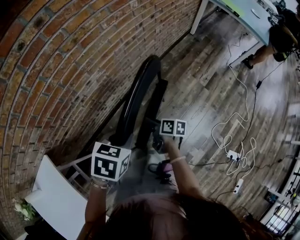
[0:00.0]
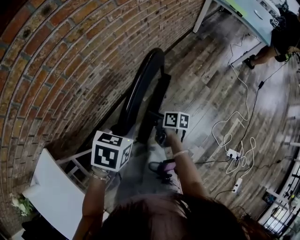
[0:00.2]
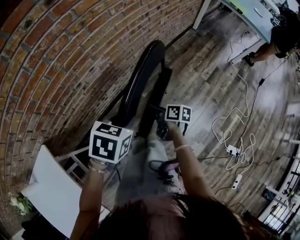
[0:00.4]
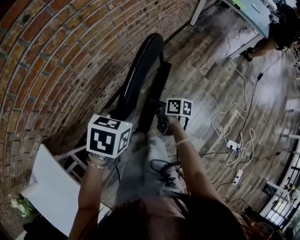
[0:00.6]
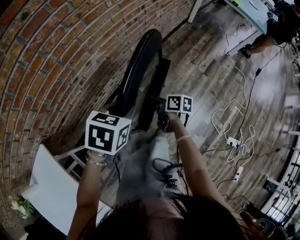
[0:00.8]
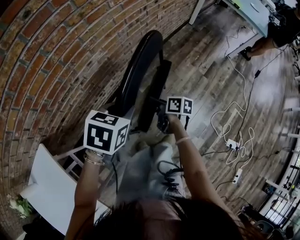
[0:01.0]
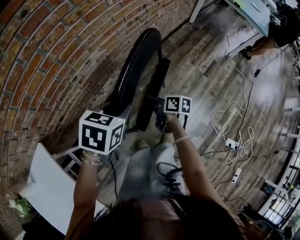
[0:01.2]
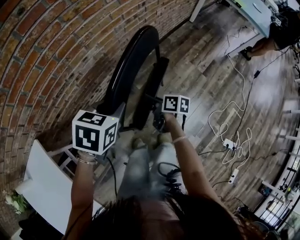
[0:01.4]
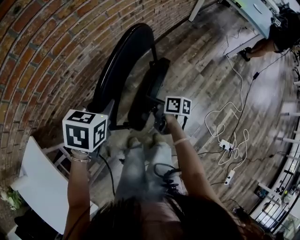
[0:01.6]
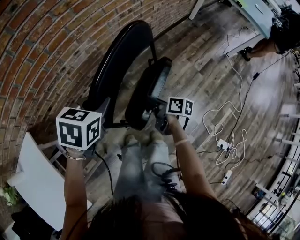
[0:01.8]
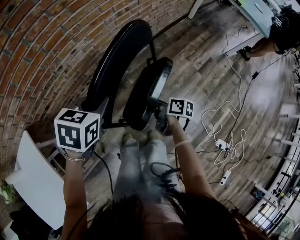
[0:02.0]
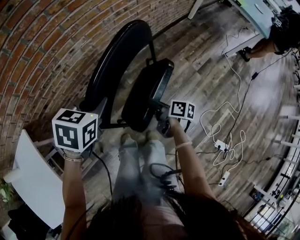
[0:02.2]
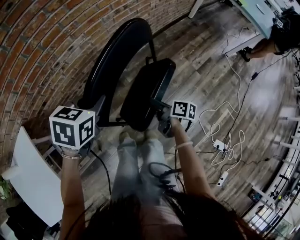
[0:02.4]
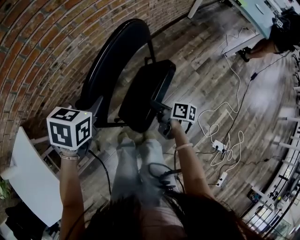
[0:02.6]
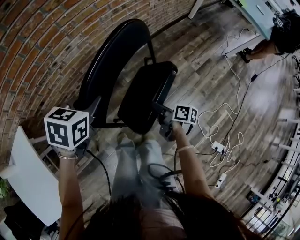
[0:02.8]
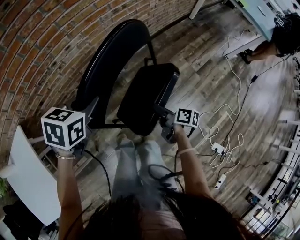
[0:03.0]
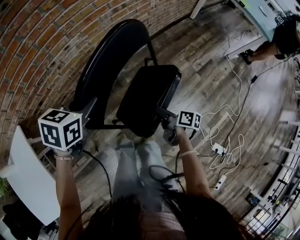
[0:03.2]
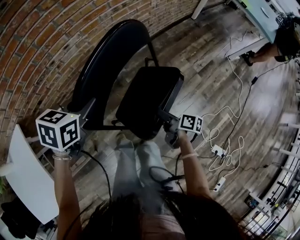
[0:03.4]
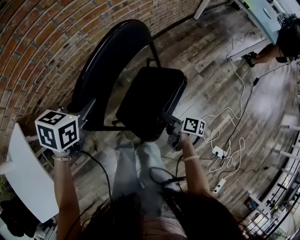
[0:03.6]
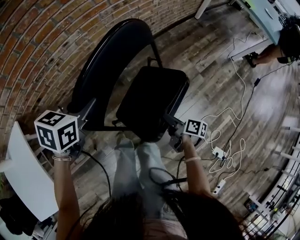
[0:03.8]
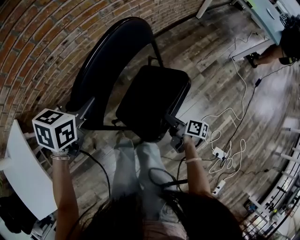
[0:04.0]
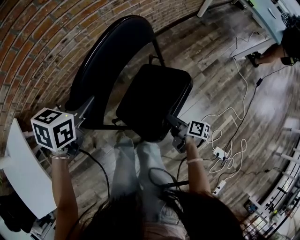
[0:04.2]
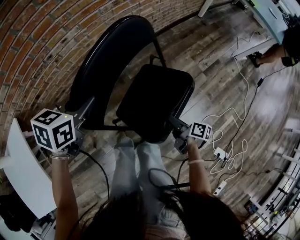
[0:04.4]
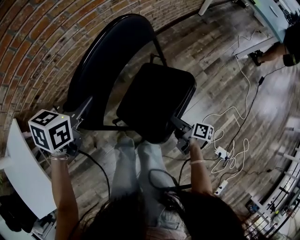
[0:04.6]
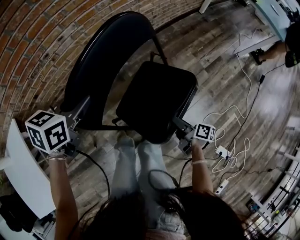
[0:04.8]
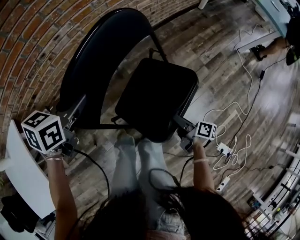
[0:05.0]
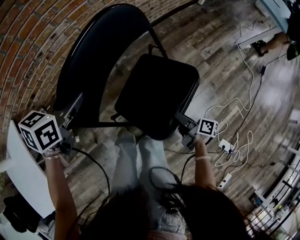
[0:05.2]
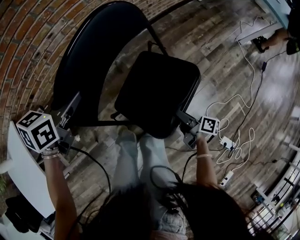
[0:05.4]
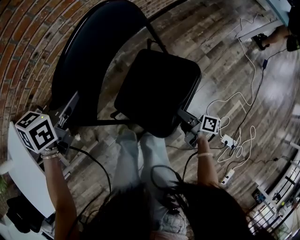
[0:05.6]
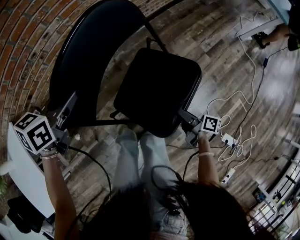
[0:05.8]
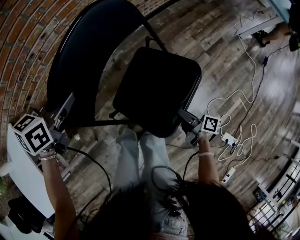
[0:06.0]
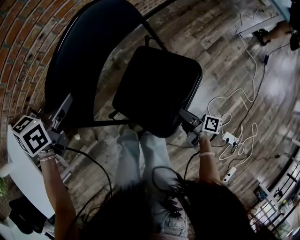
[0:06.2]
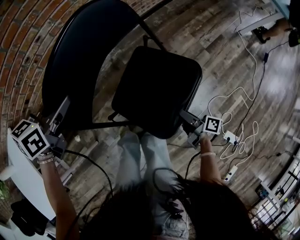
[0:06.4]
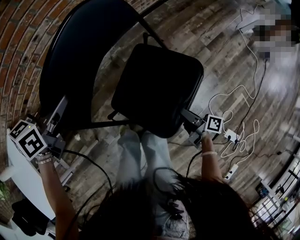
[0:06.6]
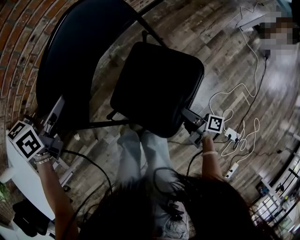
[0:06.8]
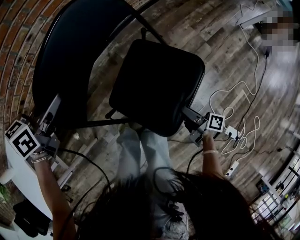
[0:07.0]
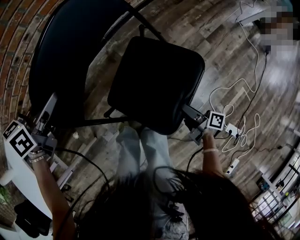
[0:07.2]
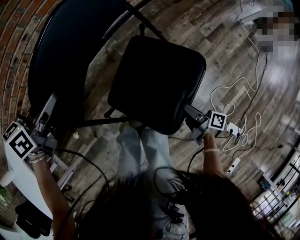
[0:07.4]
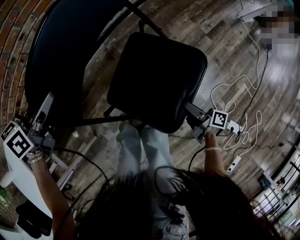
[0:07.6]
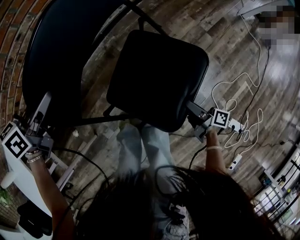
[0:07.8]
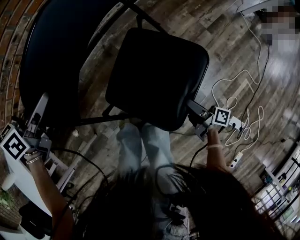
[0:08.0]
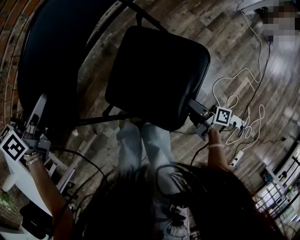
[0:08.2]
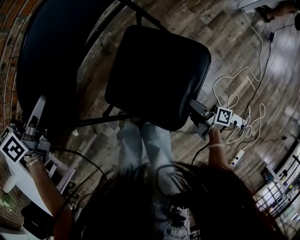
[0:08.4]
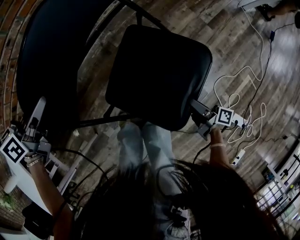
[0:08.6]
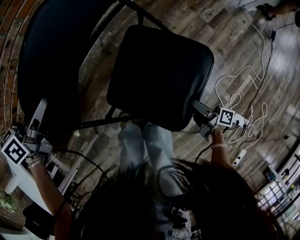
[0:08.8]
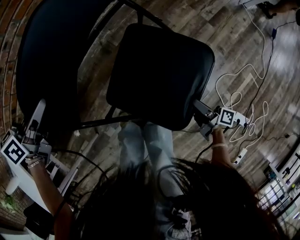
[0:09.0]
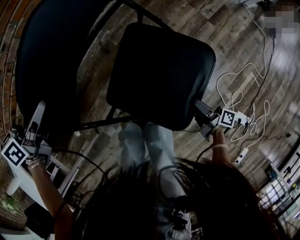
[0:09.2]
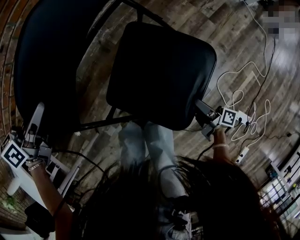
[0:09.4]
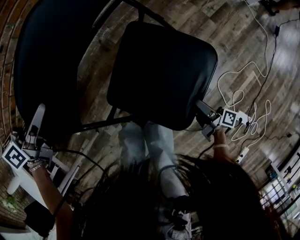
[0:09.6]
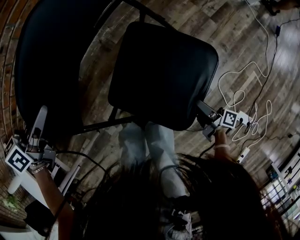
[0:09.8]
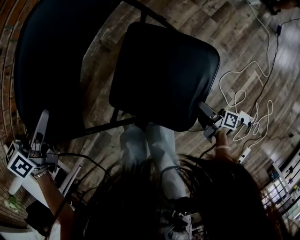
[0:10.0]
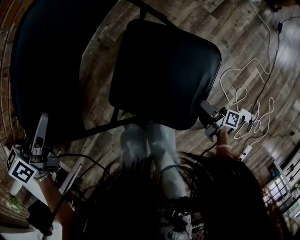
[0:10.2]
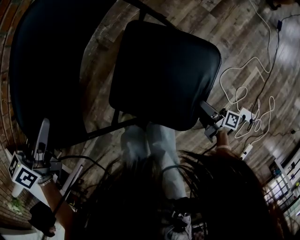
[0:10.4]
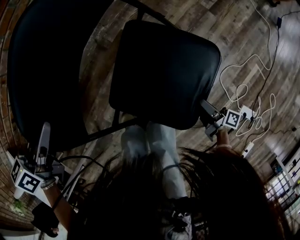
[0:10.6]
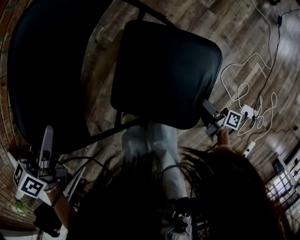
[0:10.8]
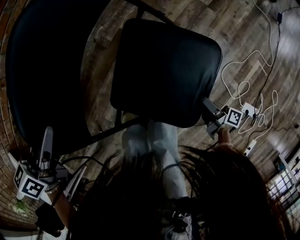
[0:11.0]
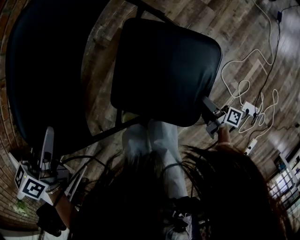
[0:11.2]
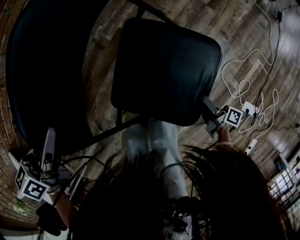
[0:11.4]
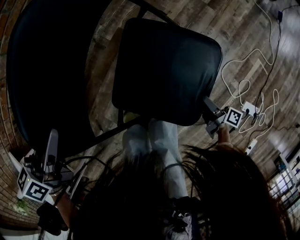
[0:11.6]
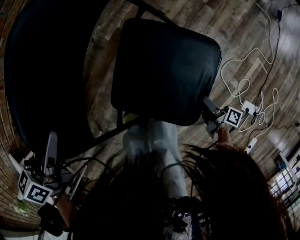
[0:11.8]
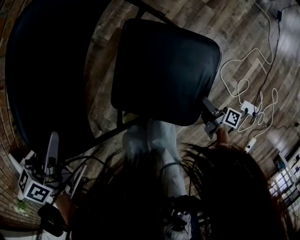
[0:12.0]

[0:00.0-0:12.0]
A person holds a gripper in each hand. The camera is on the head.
0:00.0 to 0:01.6: There are only small adjustments of the grippers.
0:01.6 to 0:03.0: The right gripper shifts approximately 15 cm to the right and backward.
0:03.0 to 0:04.4: The right gripper moves to the right, downward and backward, roughly 10 cm.
0:04.4 to 0:06.0: The right gripper is displaced downward by some 5 cm.
0:06.0 to 0:07.6: The right gripper changes place by approximately 5 cm. The left gripper shifts by roughly 5 cm.
0:07.6 to 0:09.0: The right gripper ends up approximately 5 cm from where it was.
0:09.0 to 0:10.4: The right gripper ends up some 5 cm from where it was.
0:10.4 to 0:12.0: The grippers move only a little.

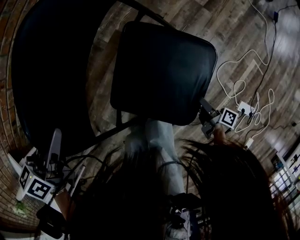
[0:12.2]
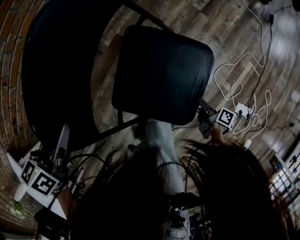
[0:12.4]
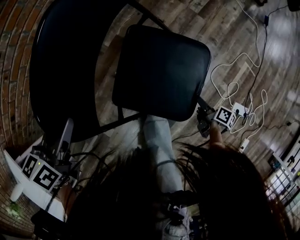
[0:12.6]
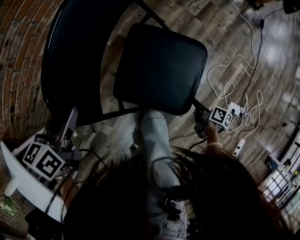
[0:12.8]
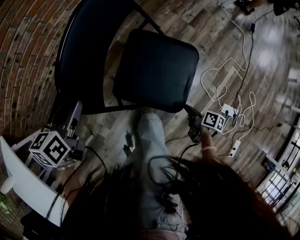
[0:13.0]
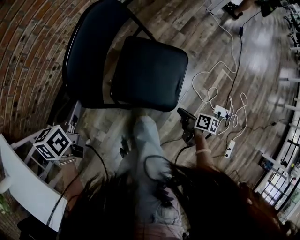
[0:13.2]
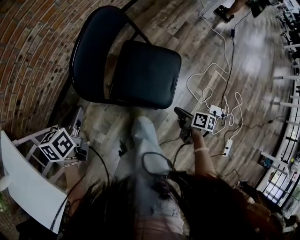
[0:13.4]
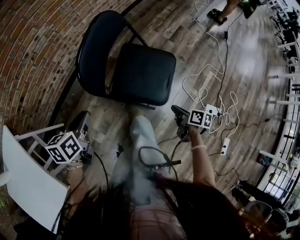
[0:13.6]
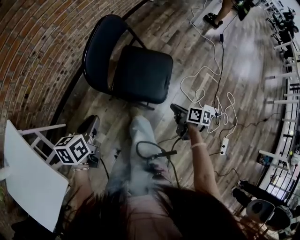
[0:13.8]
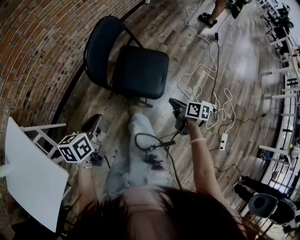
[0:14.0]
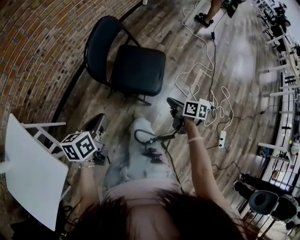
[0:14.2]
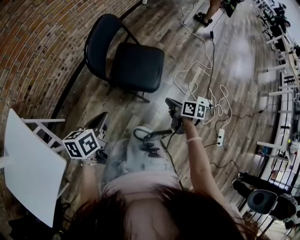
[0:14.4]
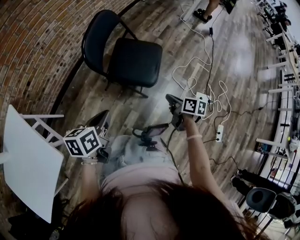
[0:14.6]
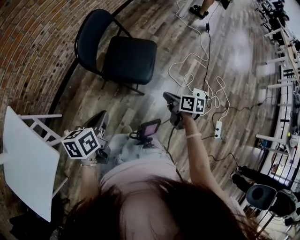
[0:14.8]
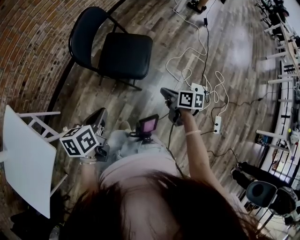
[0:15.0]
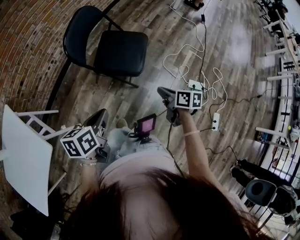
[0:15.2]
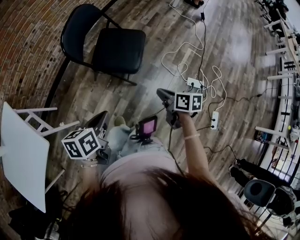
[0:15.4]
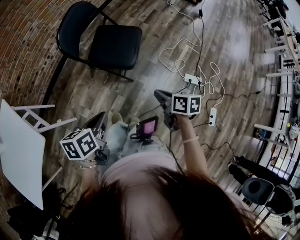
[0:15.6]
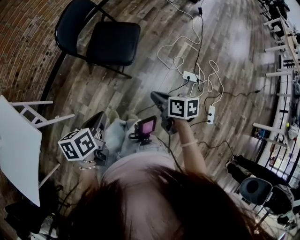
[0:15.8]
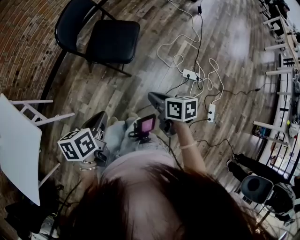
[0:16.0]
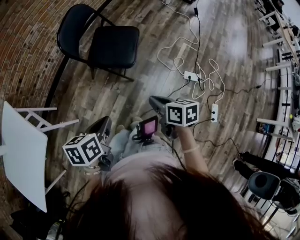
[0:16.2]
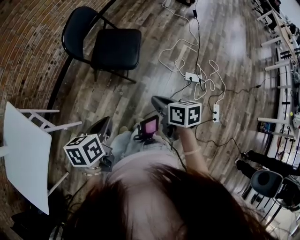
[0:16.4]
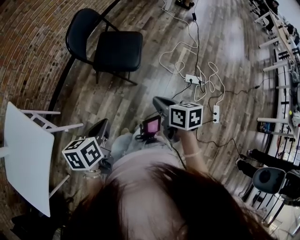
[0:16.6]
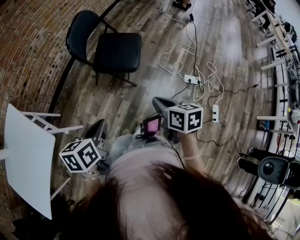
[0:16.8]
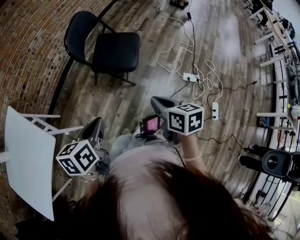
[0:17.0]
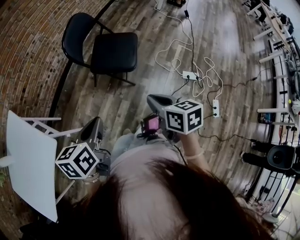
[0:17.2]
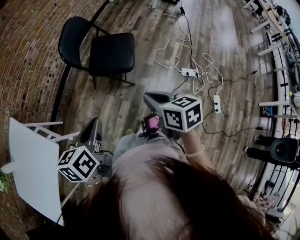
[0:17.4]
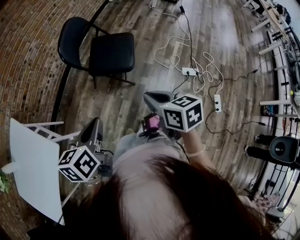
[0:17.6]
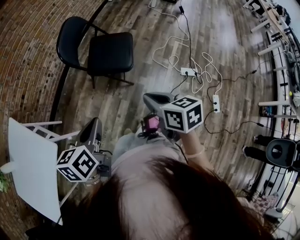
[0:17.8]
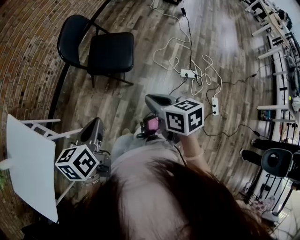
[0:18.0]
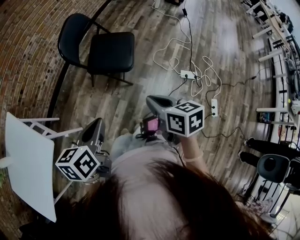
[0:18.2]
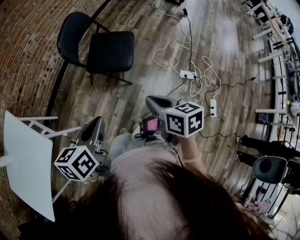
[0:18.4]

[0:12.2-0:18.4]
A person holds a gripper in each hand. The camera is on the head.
0:12.2 to 0:13.8: The right gripper moves upward and backward, about 30 cm, swivels roughly 30 degrees, and closes; the left gripper is displaced backward by roughly 25 cm.
0:13.8 to 0:15.4: The left gripper goes roughly 25 cm backward and to the right. Meanwhile the right gripper shifts some 20 cm backward and upward.
0:15.4 to 0:16.8: The left gripper goes some 10 cm backward and upward. The right gripper shifts approximately 20 cm backward, upward and to the left.
0:16.8 to 0:18.4: The left gripper ends up roughly 5 cm from where it was.

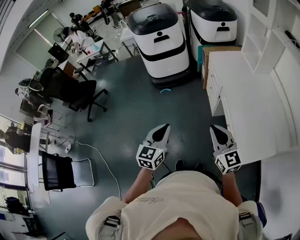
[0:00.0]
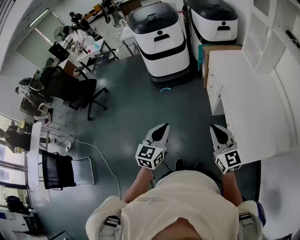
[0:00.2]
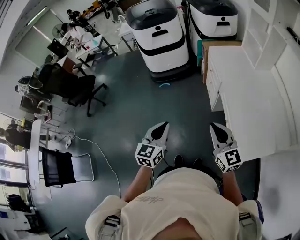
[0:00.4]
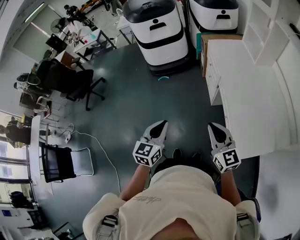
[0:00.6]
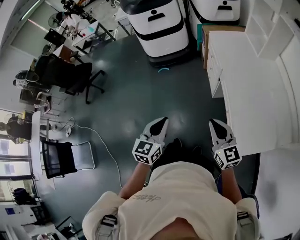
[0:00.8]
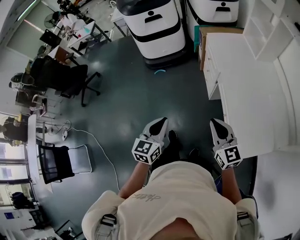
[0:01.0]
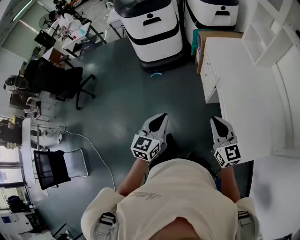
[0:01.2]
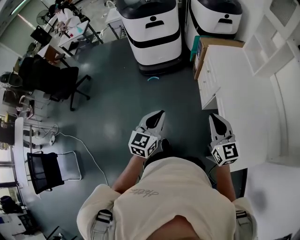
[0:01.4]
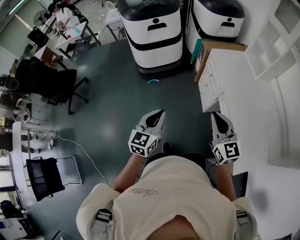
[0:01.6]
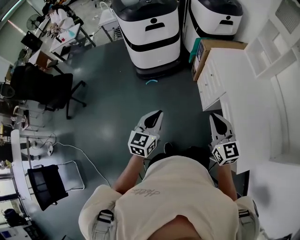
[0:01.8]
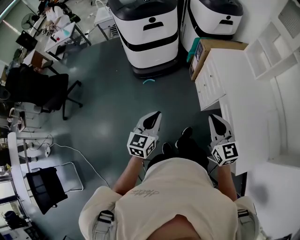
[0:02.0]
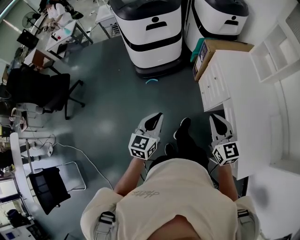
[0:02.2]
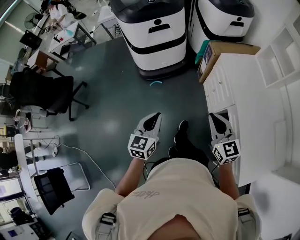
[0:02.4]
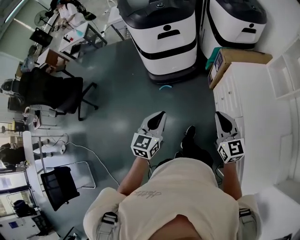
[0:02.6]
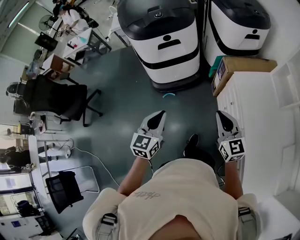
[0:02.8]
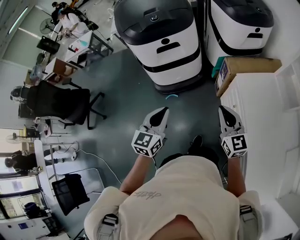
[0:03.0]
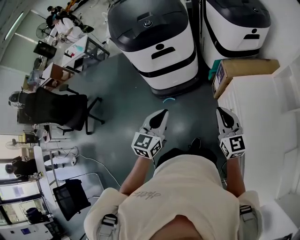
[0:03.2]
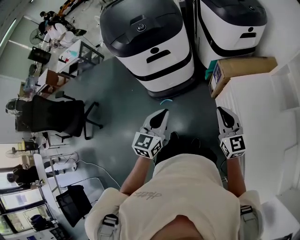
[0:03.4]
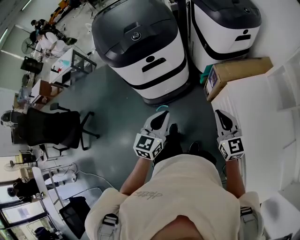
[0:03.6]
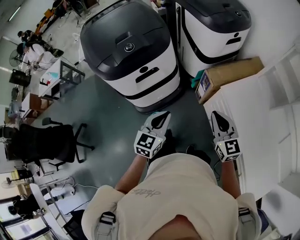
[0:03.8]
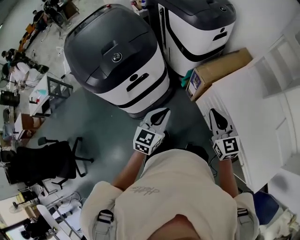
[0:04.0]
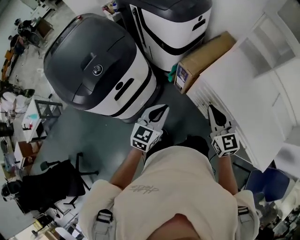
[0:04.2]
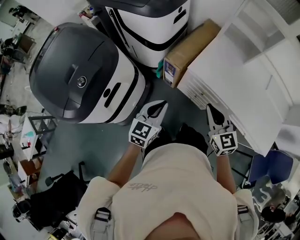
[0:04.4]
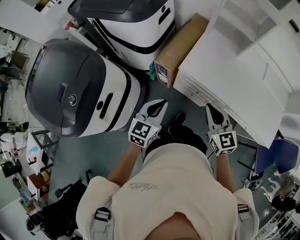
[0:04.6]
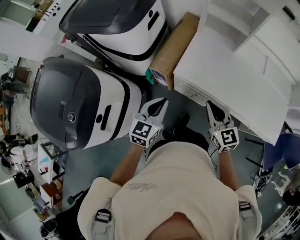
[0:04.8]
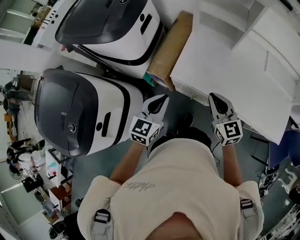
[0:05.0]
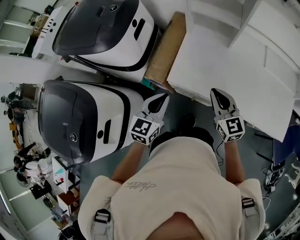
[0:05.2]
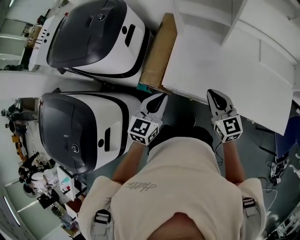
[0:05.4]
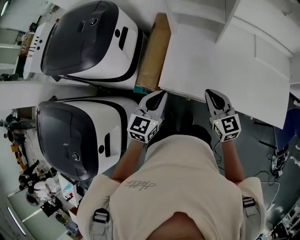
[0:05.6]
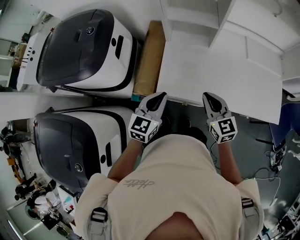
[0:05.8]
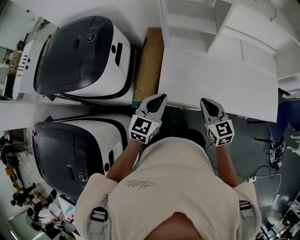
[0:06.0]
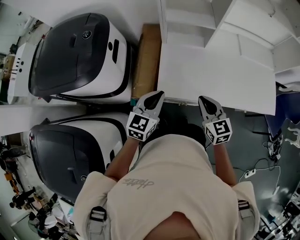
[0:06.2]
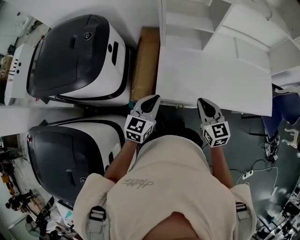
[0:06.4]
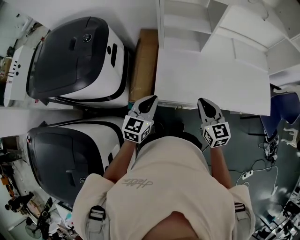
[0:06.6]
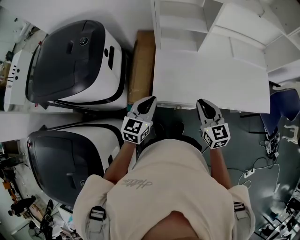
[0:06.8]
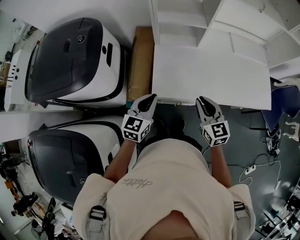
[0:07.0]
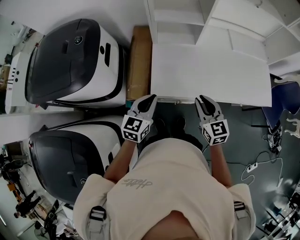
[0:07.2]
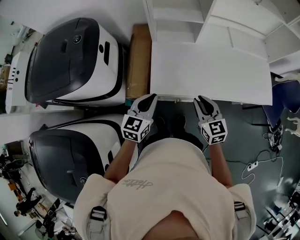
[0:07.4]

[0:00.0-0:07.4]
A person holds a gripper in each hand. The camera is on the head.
0:00.0 to 0:01.4: Both grippers travel together forward, roughly 15 cm.
0:01.4 to 0:03.0: Both grippers travel together forward, approximately 40 cm.
0:03.0 to 0:04.4: The right gripper shifts by some 10 cm, and rotates about 40 degrees, while the left gripper changes place by some 25 cm, and rotates approximately 50 degrees.
0:04.4 to 0:06.0: The right gripper shifts by roughly 20 cm, and swivels roughly 30 degrees. The left gripper shifts by approximately 30 cm, and turns by approximately 30 degrees.
0:06.0 to 0:07.4: The grippers make only small movements.
